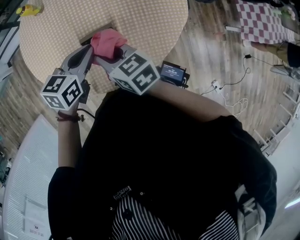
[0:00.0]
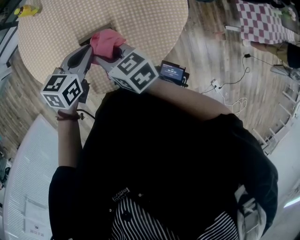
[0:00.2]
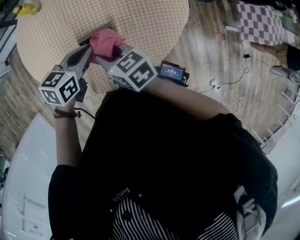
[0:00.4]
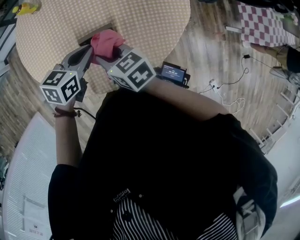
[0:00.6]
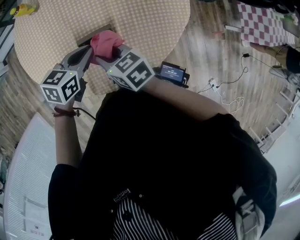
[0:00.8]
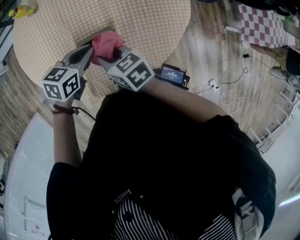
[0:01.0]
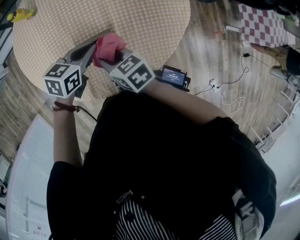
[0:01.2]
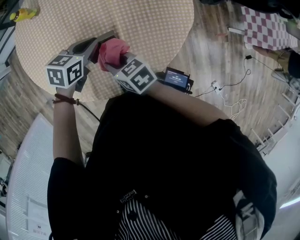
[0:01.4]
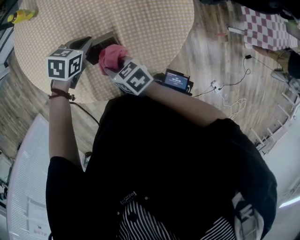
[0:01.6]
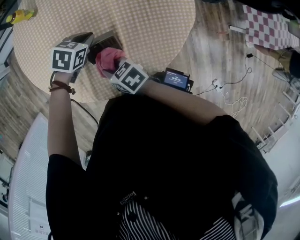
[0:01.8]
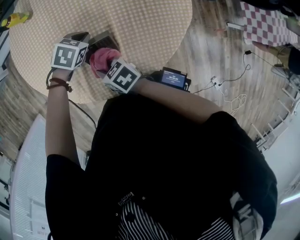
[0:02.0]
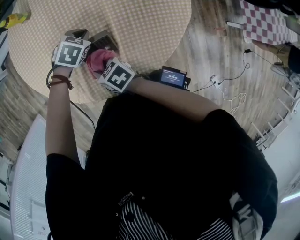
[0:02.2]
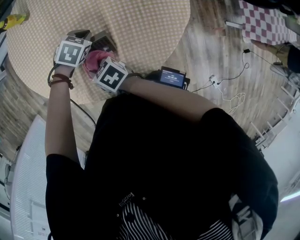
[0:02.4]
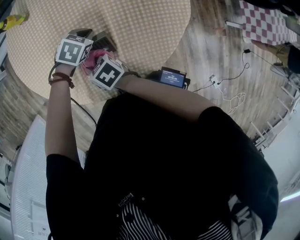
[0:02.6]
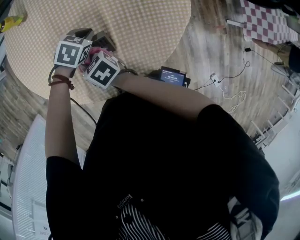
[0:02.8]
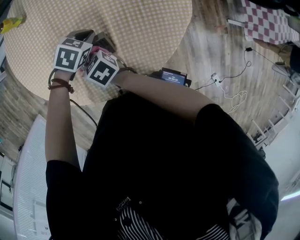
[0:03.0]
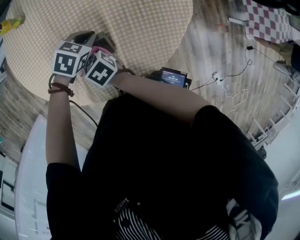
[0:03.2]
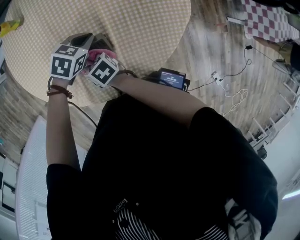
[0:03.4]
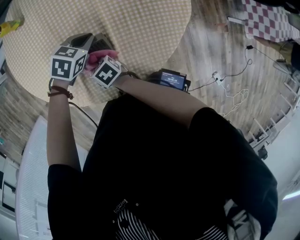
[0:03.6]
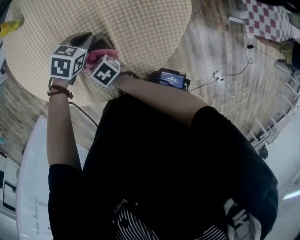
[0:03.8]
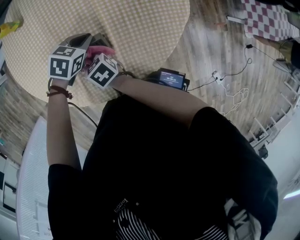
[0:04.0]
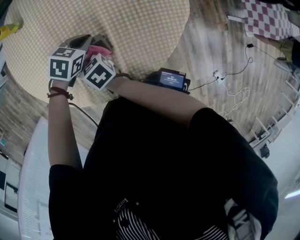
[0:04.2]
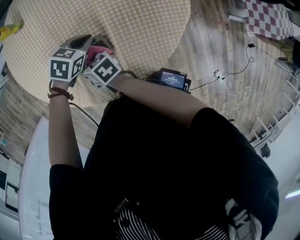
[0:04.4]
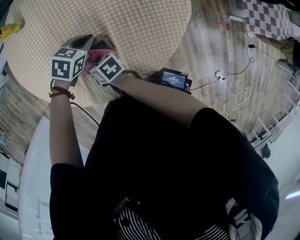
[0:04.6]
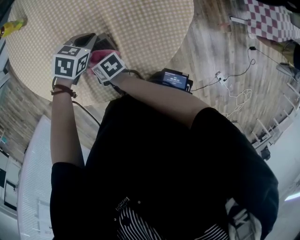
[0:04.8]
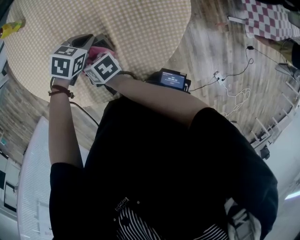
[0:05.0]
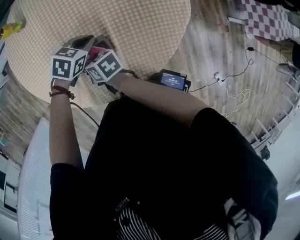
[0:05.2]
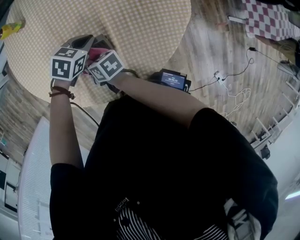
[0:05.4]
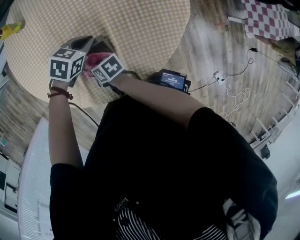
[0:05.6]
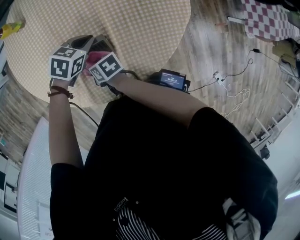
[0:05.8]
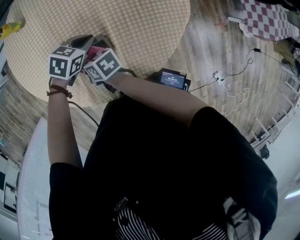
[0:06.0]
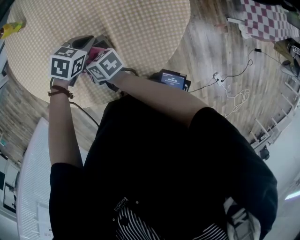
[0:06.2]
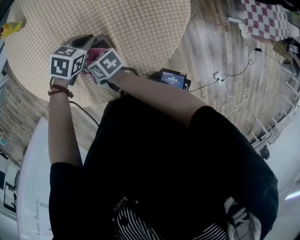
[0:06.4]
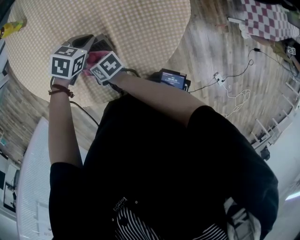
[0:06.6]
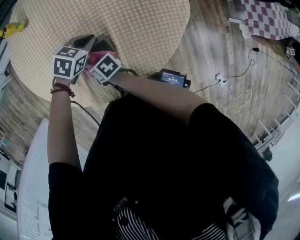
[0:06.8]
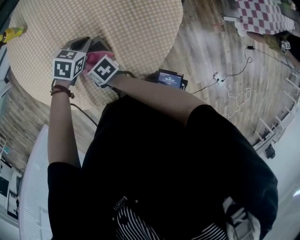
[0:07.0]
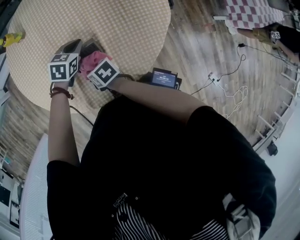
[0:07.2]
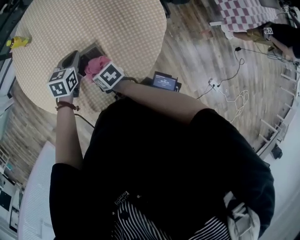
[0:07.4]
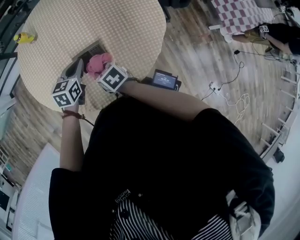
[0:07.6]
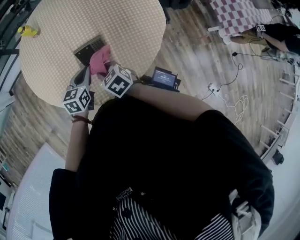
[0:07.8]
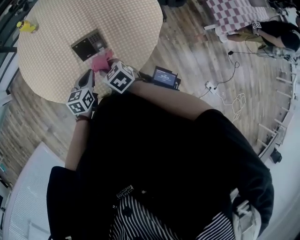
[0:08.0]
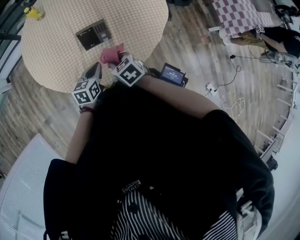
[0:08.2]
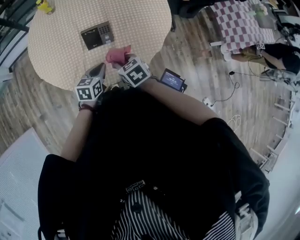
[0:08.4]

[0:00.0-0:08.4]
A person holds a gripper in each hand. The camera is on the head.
0:00.0 to 0:01.4: Both grippers move downward, roughly 10 cm.
0:01.4 to 0:02.8: The left gripper moves downward, about 10 cm, and changes its angle by roughly 30 degrees; the right gripper moves some 10 cm.
0:02.8 to 0:04.2: The right gripper goes downward and returns, approximately 10 cm each way.
0:04.2 to 0:05.6: The right gripper moves up and down over roughly 5 cm, changing direction 2 times, and rotates roughly 20 degrees.
0:07.0 to 0:08.4: The right gripper moves about 20 cm, and turns by some 30 degrees. The left gripper moves approximately 10 cm upward and comes back, and turns by roughly 30 degrees.

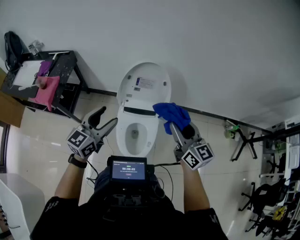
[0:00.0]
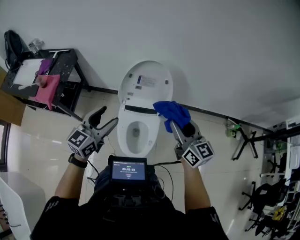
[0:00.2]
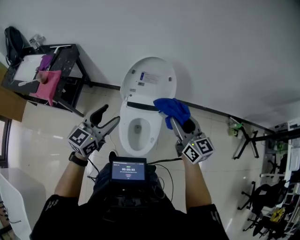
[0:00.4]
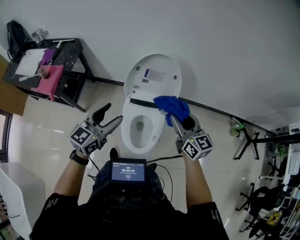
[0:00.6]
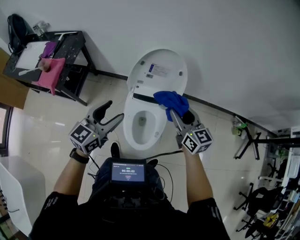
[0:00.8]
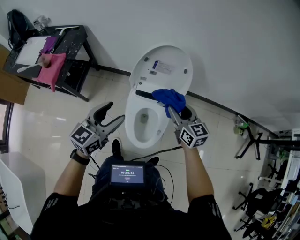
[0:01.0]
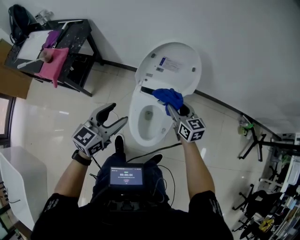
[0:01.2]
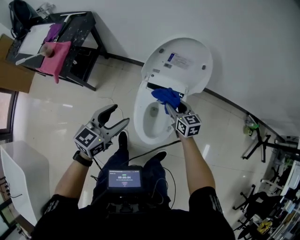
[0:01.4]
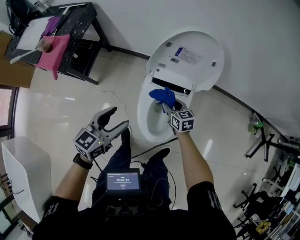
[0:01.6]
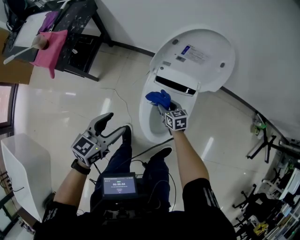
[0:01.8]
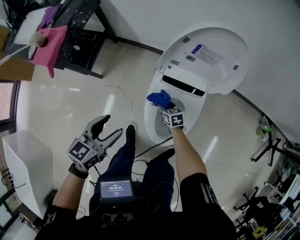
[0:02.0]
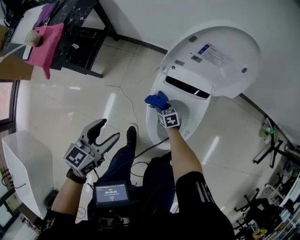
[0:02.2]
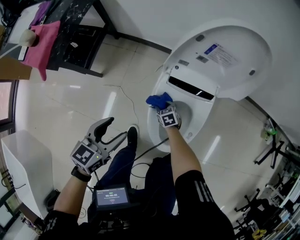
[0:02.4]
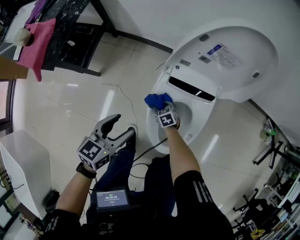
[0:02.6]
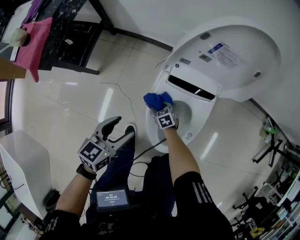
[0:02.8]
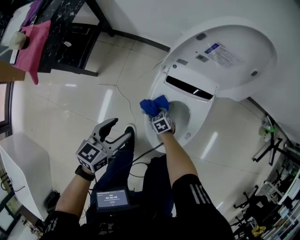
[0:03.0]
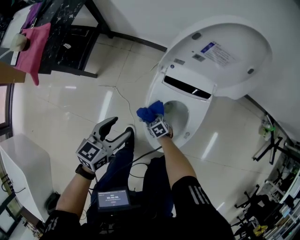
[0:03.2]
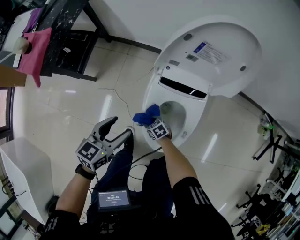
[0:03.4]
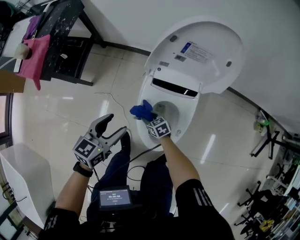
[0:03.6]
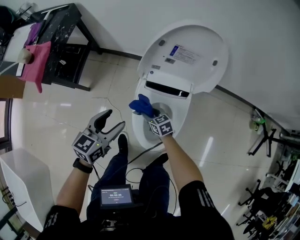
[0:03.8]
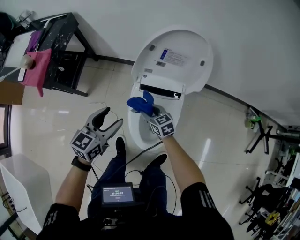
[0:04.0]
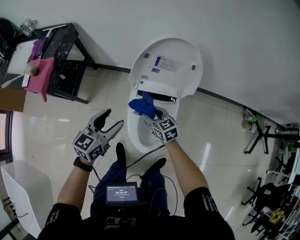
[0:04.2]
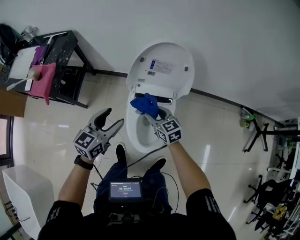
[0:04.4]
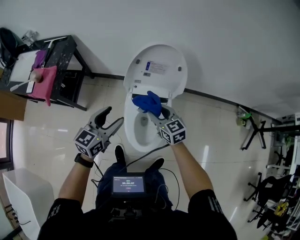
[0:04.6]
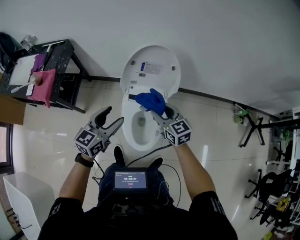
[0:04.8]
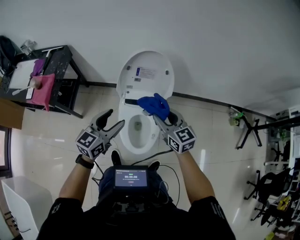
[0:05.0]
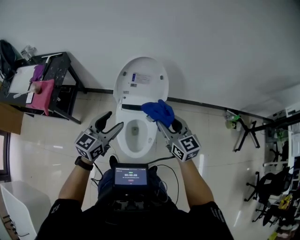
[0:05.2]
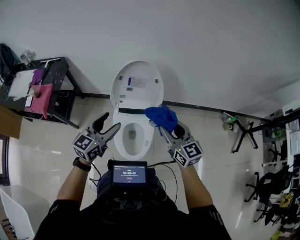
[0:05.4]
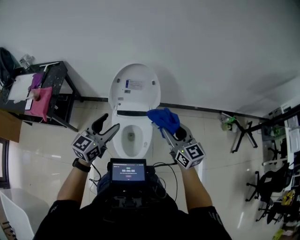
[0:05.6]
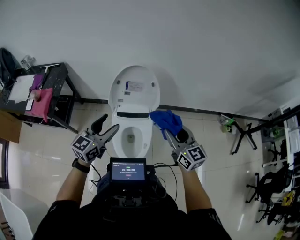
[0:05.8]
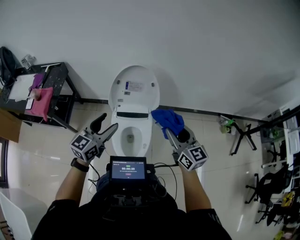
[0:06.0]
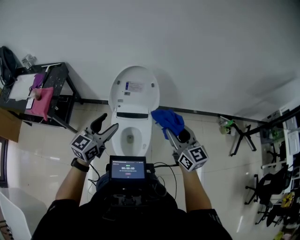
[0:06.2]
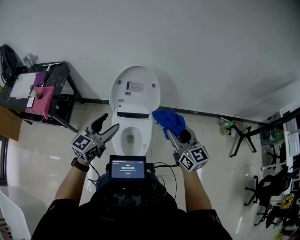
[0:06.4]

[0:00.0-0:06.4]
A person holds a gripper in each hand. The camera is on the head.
0:00.0 to 0:01.6: The left gripper goes approximately 20 cm downward. The right gripper shifts approximately 40 cm downward, and tips its fingers downward by approximately 30 degrees.
0:01.6 to 0:03.2: The right gripper heads downward and to the left, covering some 35 cm, and swivels approximately 40 degrees. The left gripper is displaced downward by some 20 cm.
0:03.2 to 0:04.8: The right gripper travels upward by roughly 60 cm, and angles its fingers upward, by some 40 degrees. The left gripper goes roughly 25 cm upward, and rotates approximately 20 degrees.
0:04.8 to 0:06.4: The right gripper shifts about 25 cm upward, to the right and backward, and turns by approximately 20 degrees; the left gripper shifts roughly 10 cm upward and to the right.

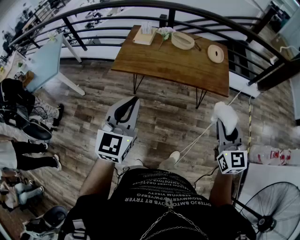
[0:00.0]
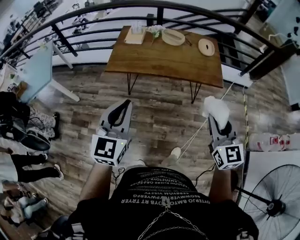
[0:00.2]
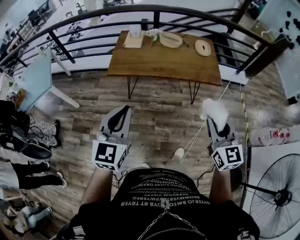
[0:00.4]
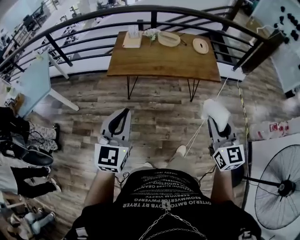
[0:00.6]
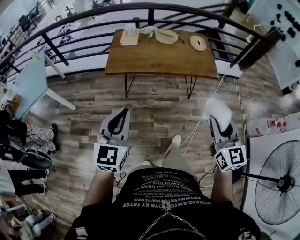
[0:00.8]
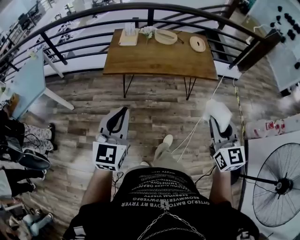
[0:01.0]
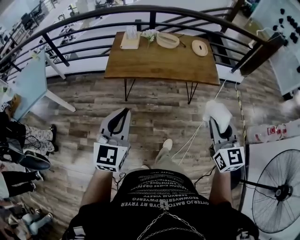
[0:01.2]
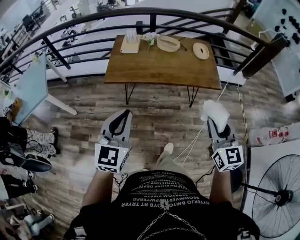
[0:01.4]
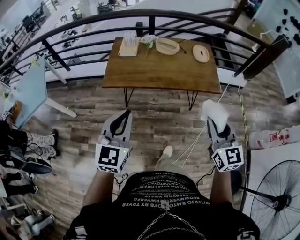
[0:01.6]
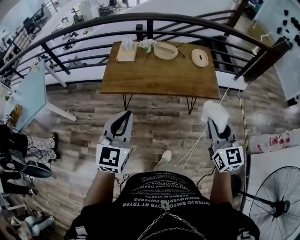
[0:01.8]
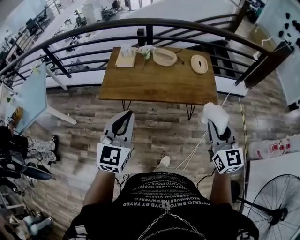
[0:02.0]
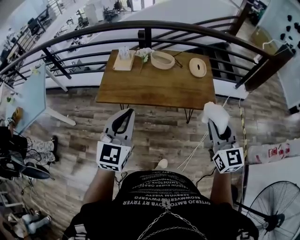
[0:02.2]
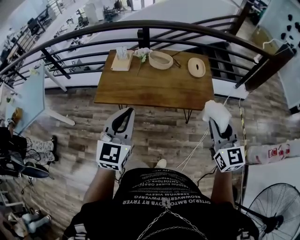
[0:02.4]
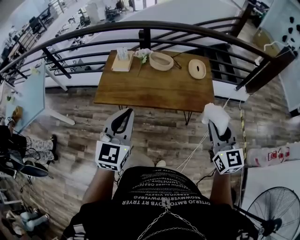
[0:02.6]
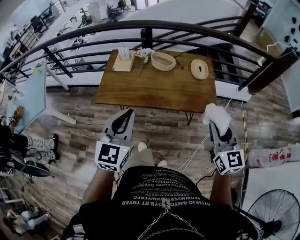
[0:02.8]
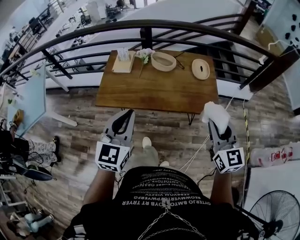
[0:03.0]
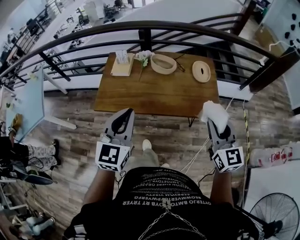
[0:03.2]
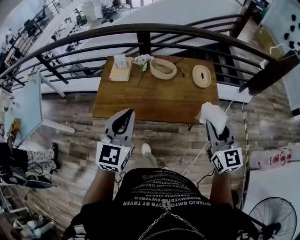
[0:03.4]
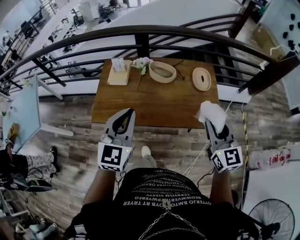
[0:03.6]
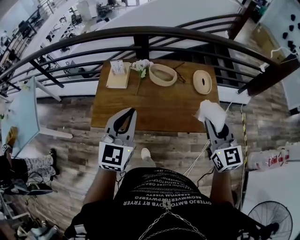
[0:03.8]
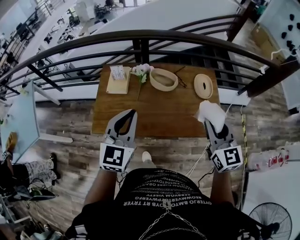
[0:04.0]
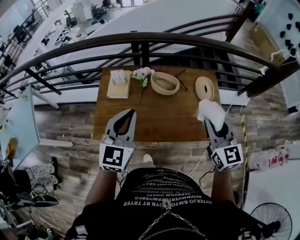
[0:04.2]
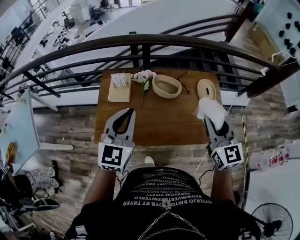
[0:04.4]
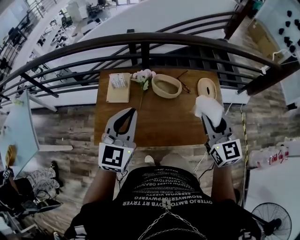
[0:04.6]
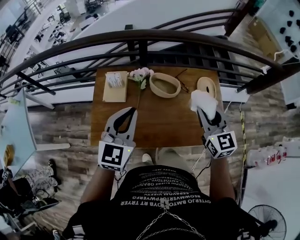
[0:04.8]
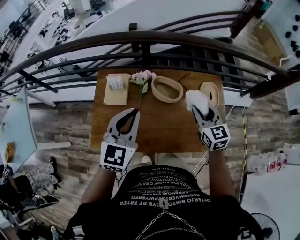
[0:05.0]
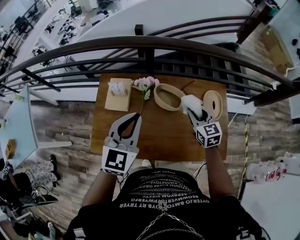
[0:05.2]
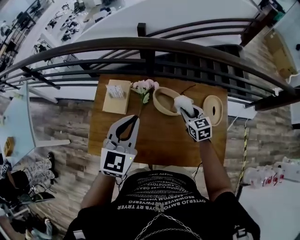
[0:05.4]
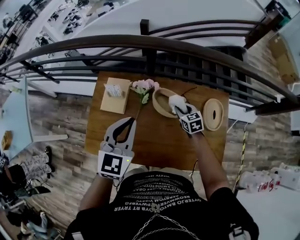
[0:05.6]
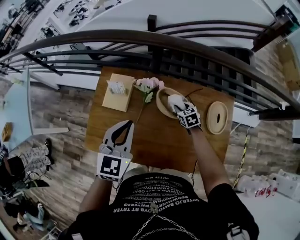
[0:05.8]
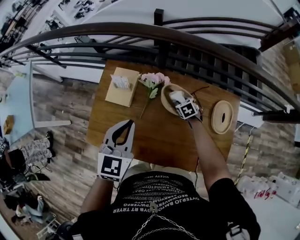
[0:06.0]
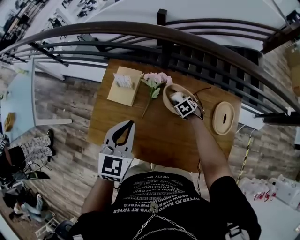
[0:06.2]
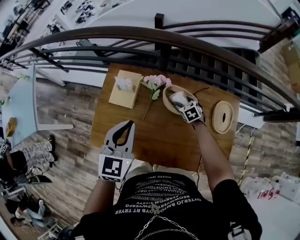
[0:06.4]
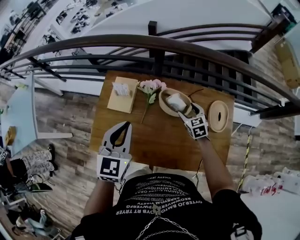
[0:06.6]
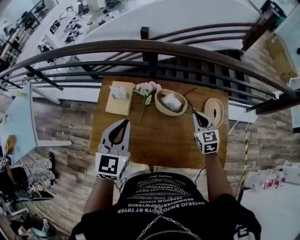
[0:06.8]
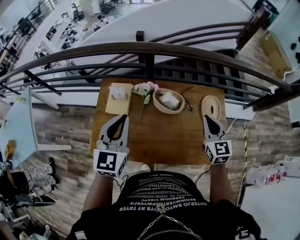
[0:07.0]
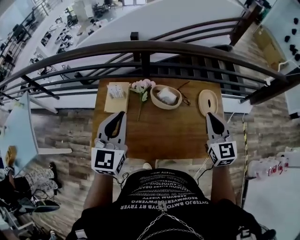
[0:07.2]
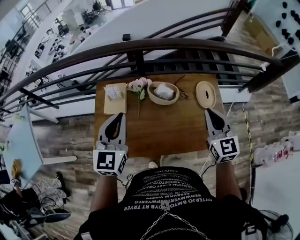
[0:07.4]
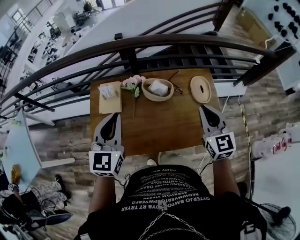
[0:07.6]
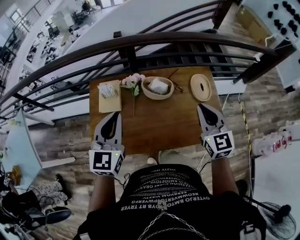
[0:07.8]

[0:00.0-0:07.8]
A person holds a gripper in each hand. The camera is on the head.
0:00.0 to 0:01.6: The two grippers go roughly 10 cm to the left. The right gripper reaches approximately 10 cm backward, then returns.
0:01.6 to 0:03.2: The grippers both shift forward and to the right by about 20 cm.
0:03.2 to 0:04.6: The right gripper is displaced forward and to the left by approximately 25 cm, while the left gripper travels forward by roughly 25 cm.
0:04.6 to 0:06.2: The right gripper shifts roughly 50 cm downward and forward, and points its fingers roughly 60 degrees further downward, while the left gripper shifts approximately 15 cm forward and downward, and turns by some 20 degrees.
0:06.2 to 0:07.8: The left gripper travels upward and backward by about 10 cm, and changes its angle by approximately 20 degrees. Meanwhile the right gripper is displaced upward and backward by about 50 cm, tips its fingers upward by roughly 60 degrees, and closes its fingers.

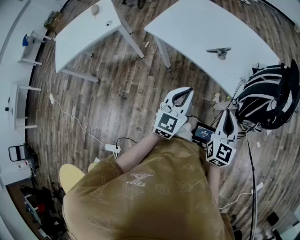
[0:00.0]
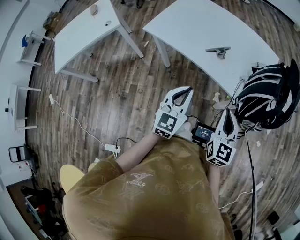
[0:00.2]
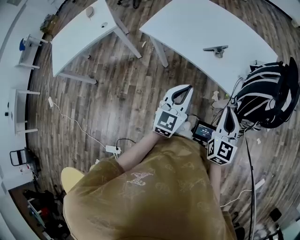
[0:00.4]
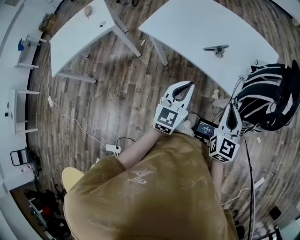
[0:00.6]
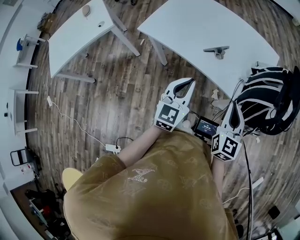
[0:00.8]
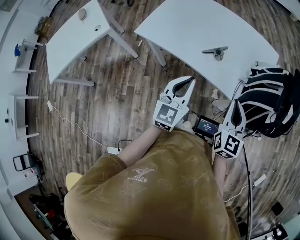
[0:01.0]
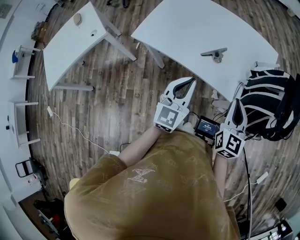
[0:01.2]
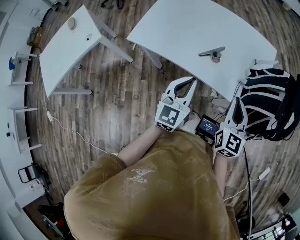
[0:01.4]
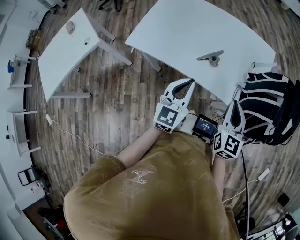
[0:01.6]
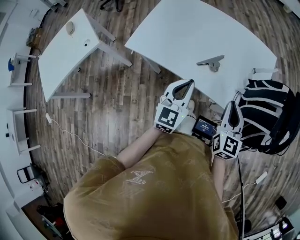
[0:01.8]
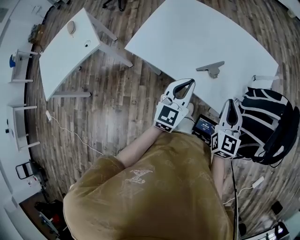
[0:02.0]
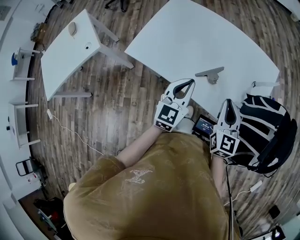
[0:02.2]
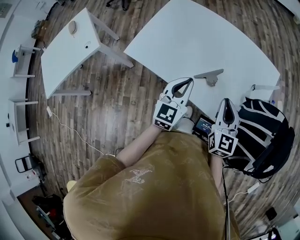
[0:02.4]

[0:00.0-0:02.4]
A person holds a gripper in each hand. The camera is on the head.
0:00.0 to 0:01.2: The grippers both shift forward by roughly 10 cm.
0:01.2 to 0:02.4: Both grippers move forward, about 15 cm.
